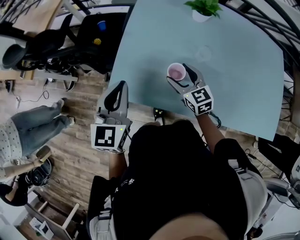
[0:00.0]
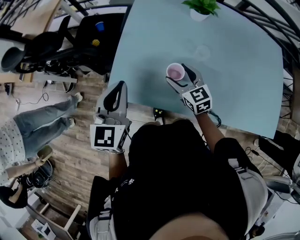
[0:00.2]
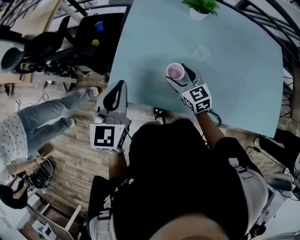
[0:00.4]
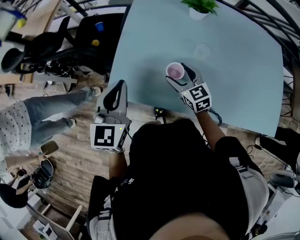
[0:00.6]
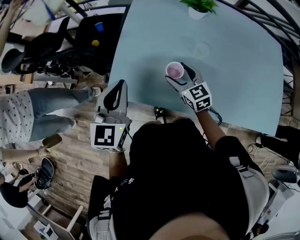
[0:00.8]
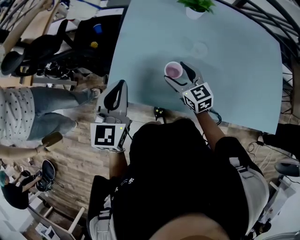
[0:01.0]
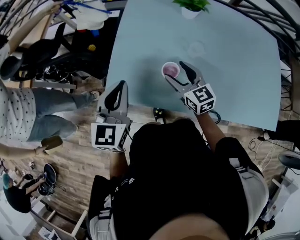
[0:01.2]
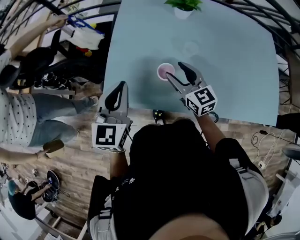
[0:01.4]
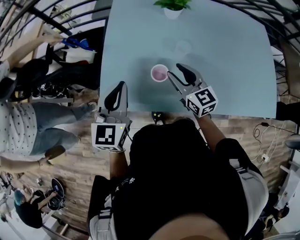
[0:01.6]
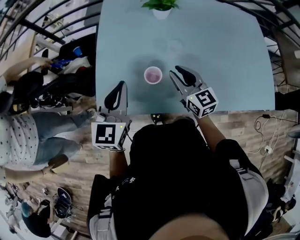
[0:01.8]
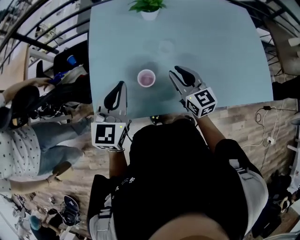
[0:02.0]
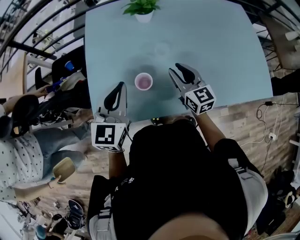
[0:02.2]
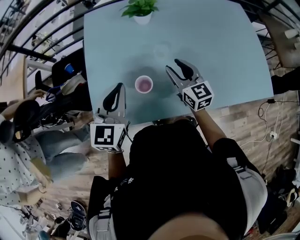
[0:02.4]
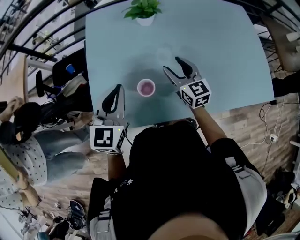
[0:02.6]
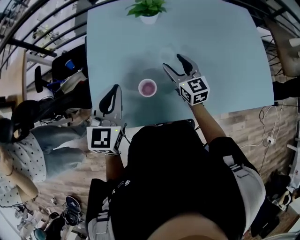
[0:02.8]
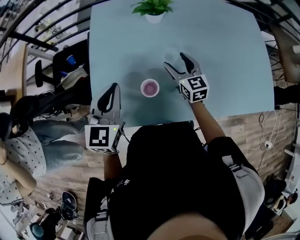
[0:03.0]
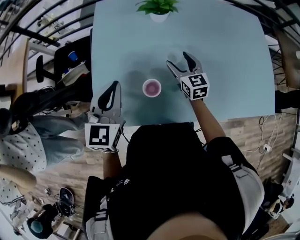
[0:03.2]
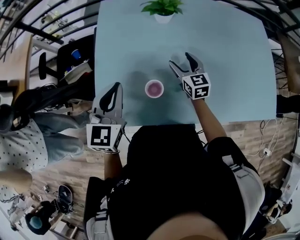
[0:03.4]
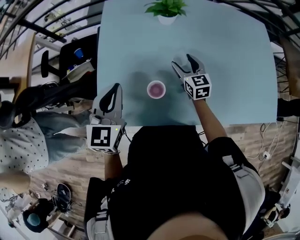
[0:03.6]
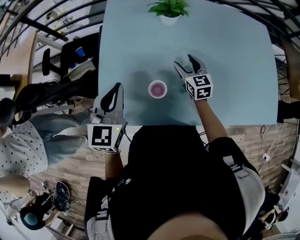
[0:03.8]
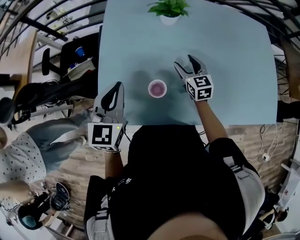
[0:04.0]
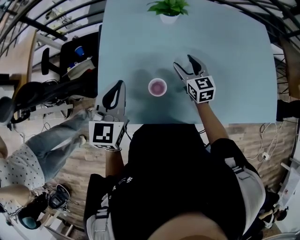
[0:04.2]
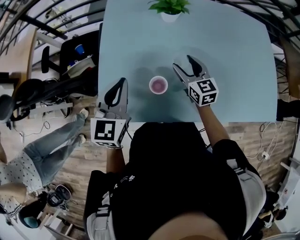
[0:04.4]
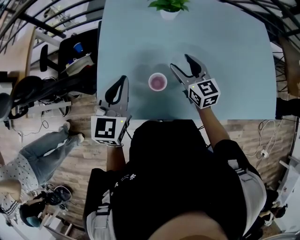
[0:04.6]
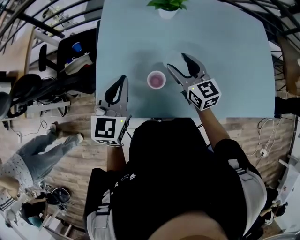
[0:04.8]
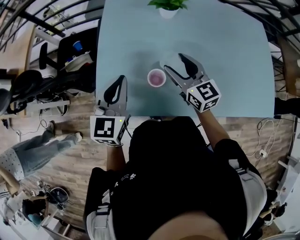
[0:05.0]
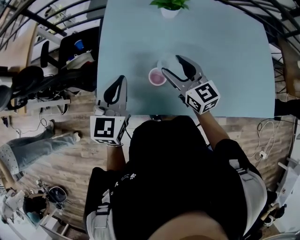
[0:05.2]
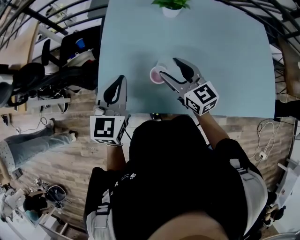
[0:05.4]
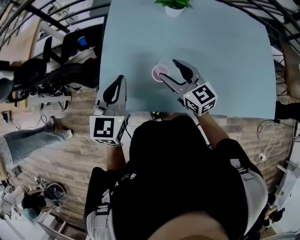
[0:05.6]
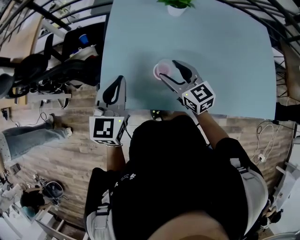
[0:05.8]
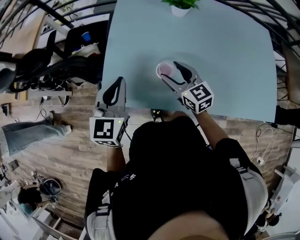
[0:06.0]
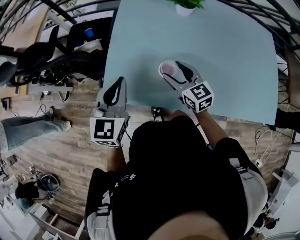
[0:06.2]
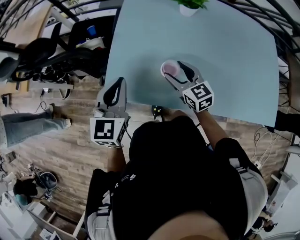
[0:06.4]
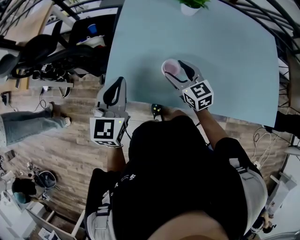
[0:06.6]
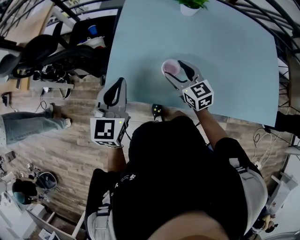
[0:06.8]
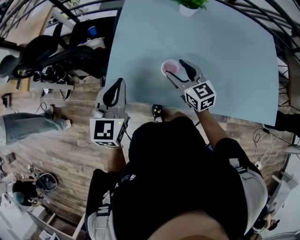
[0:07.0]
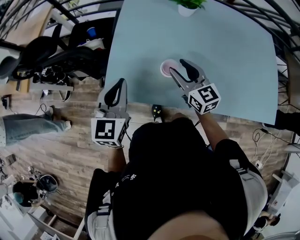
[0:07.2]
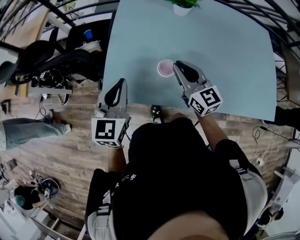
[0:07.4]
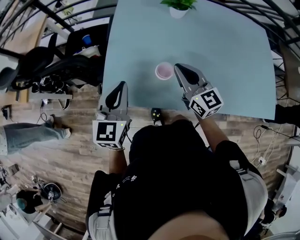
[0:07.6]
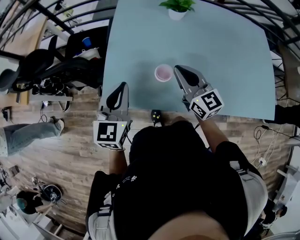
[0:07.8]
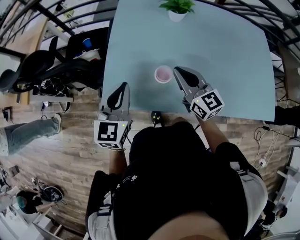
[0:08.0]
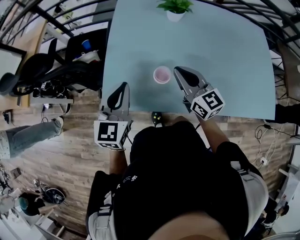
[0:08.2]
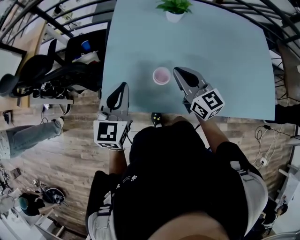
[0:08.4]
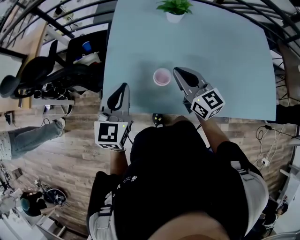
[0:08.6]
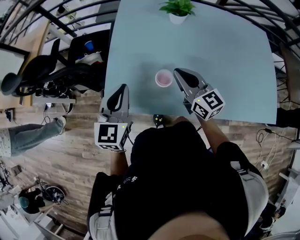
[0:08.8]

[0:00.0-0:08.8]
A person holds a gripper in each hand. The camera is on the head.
0:00.0 to 0:01.4: The grippers make only small movements.
0:01.4 to 0:03.0: The right gripper goes some 15 cm to the right and forward, turns by roughly 20 degrees, and closes, then opens again, while the left gripper goes approximately 10 cm forward and to the right.
0:03.0 to 0:04.4: The grippers move only a little.
0:04.4 to 0:05.8: The right gripper is displaced to the left and backward by roughly 15 cm. Meanwhile the left gripper heads backward, covering some 5 cm.
0:05.8 to 0:07.4: The right gripper closes.
0:07.4 to 0:08.8: The grippers stay close to where they were, moving slightly.

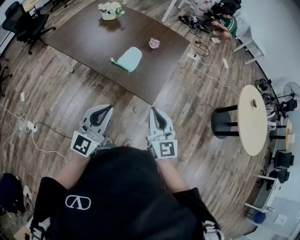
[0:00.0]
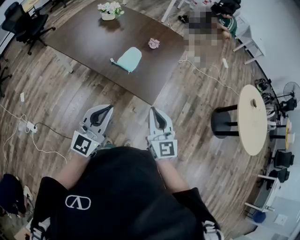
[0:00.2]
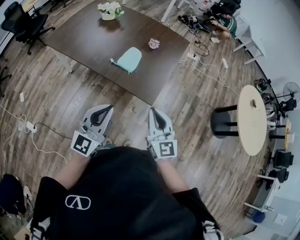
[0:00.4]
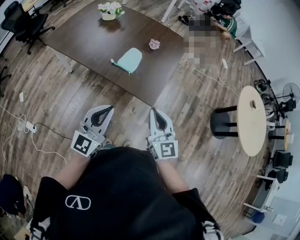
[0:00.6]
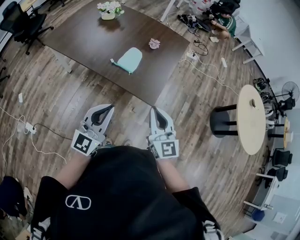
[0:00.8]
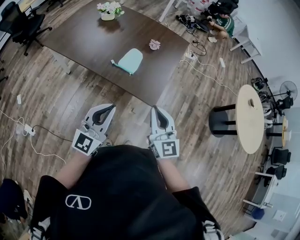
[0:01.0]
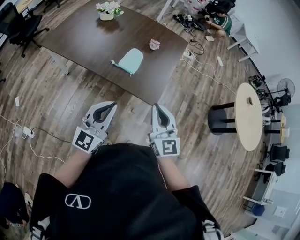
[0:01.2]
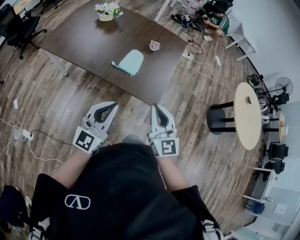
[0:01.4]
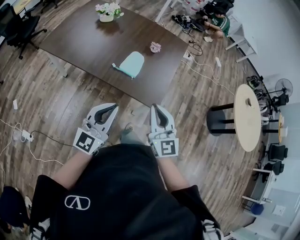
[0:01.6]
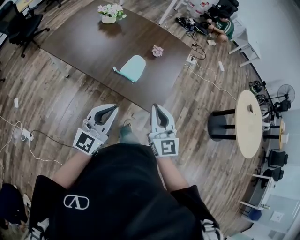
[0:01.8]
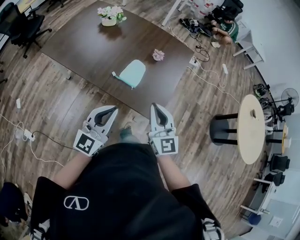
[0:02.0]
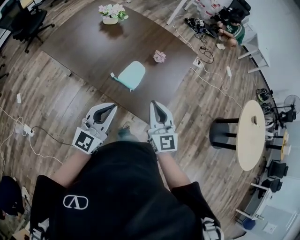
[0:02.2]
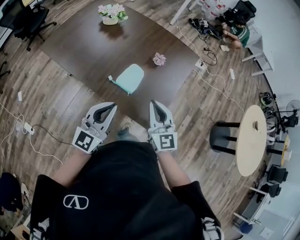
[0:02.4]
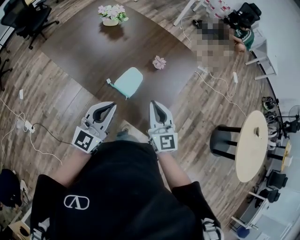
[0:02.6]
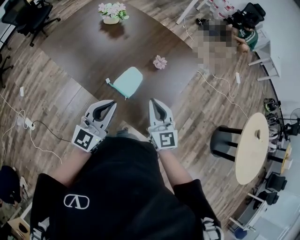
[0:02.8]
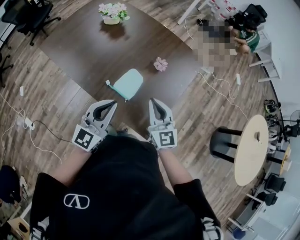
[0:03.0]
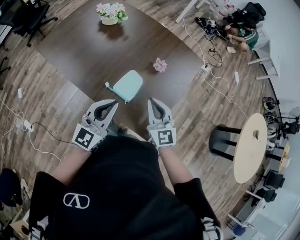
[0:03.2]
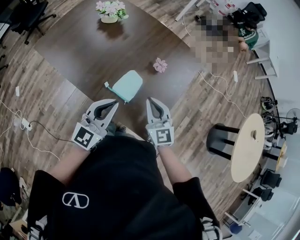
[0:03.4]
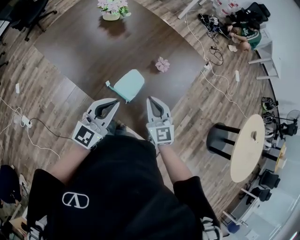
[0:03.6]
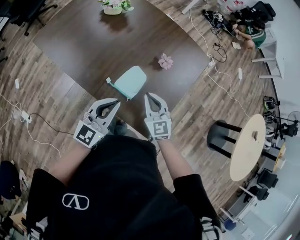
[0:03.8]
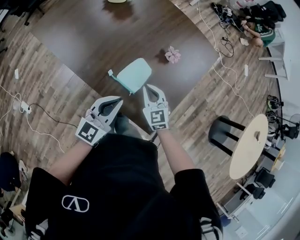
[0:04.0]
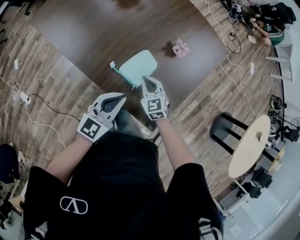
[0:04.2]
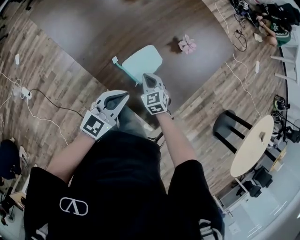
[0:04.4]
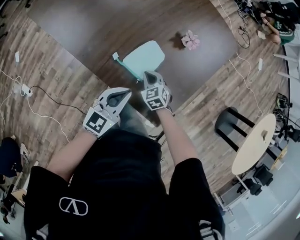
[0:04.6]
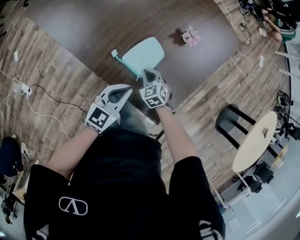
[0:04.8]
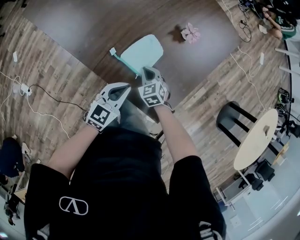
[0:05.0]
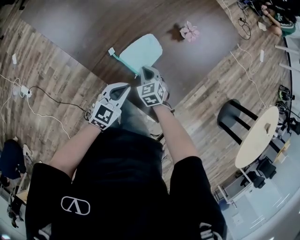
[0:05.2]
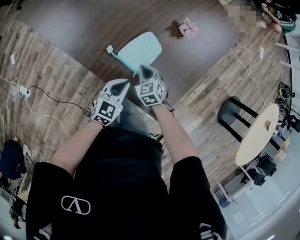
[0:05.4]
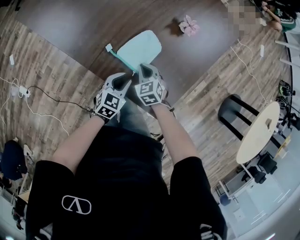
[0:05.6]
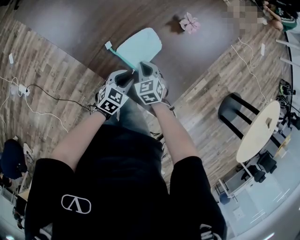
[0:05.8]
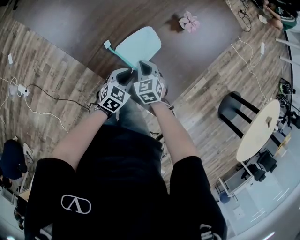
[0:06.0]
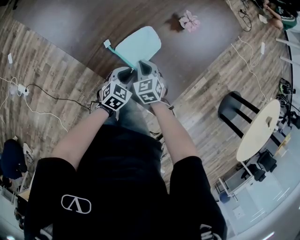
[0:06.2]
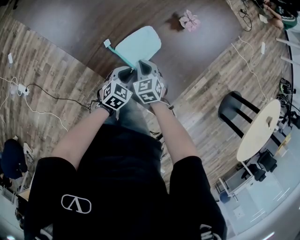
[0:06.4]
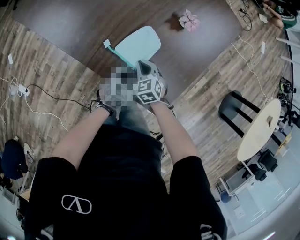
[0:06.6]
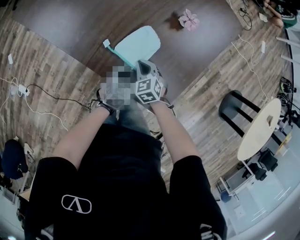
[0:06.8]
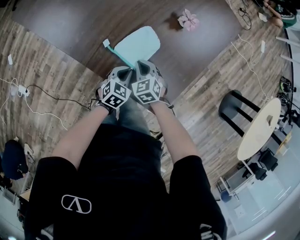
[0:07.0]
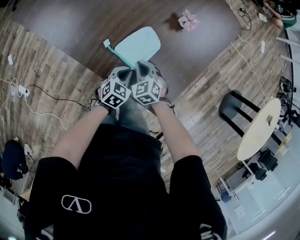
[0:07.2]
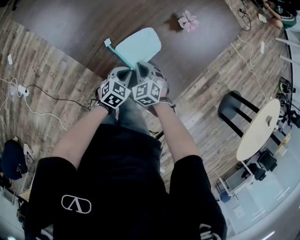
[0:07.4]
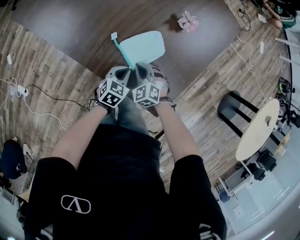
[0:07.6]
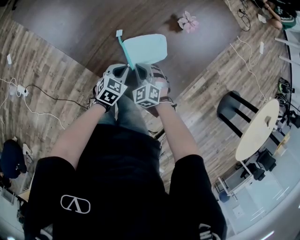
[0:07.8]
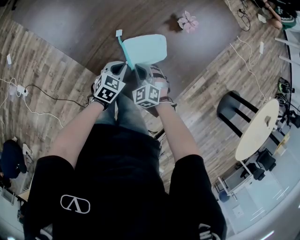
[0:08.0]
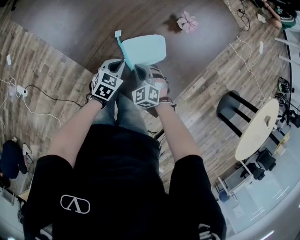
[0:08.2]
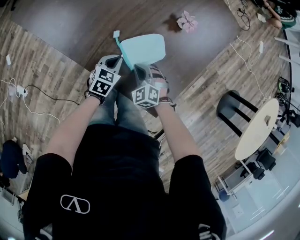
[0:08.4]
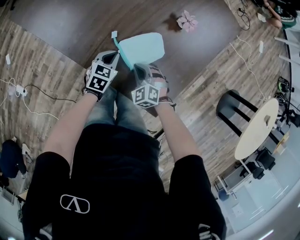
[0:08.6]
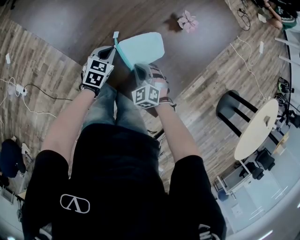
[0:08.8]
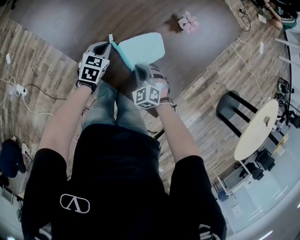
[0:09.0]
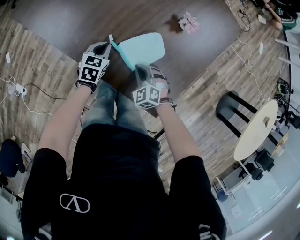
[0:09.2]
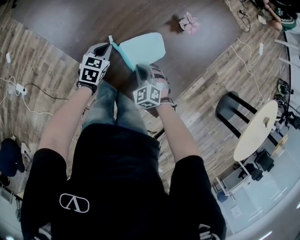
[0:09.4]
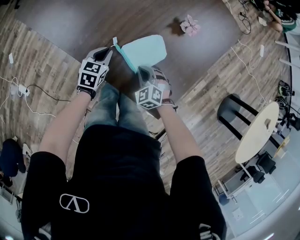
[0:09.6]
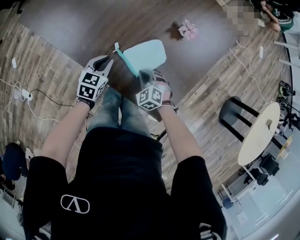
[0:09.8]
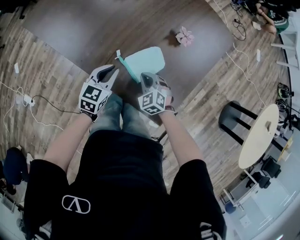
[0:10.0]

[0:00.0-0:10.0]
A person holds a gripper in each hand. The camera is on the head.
0:00.0 to 0:01.4: Both grippers travel together to the left, some 5 cm.
0:01.4 to 0:02.8: Both grippers move forward, some 30 cm.
0:02.8 to 0:04.2: The right gripper heads downward and forward, covering about 30 cm, and angles its fingers downward, by some 30 degrees. The left gripper heads downward and forward, covering some 20 cm.
0:04.2 to 0:05.8: The left gripper is displaced downward by about 25 cm, points its fingers roughly 30 degrees further downward, and opens its fingers, while the right gripper heads downward, covering some 10 cm.
0:05.8 to 0:07.2: The left gripper closes its fingers.
0:07.2 to 0:08.6: The left gripper travels forward and to the left by some 10 cm.
0:08.6 to 0:10.0: The right gripper heads upward, covering about 5 cm; the left gripper is displaced upward by roughly 15 cm.

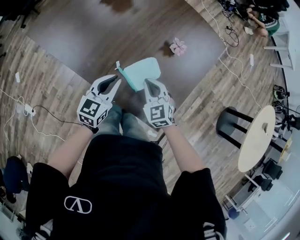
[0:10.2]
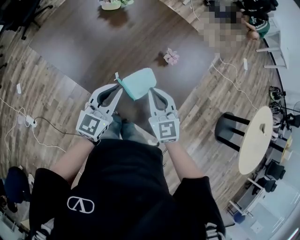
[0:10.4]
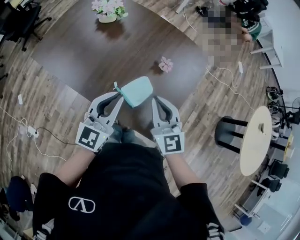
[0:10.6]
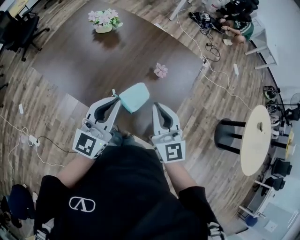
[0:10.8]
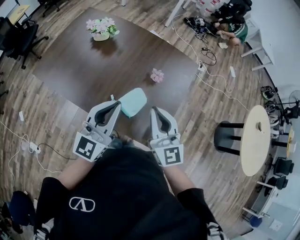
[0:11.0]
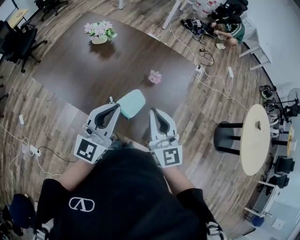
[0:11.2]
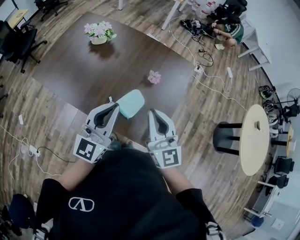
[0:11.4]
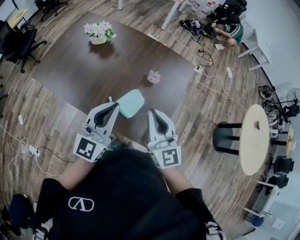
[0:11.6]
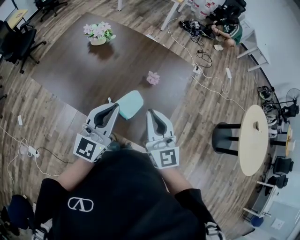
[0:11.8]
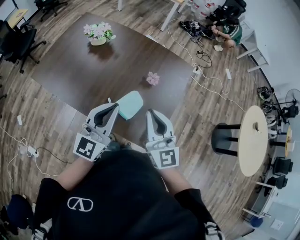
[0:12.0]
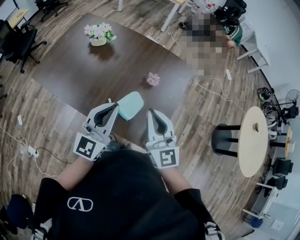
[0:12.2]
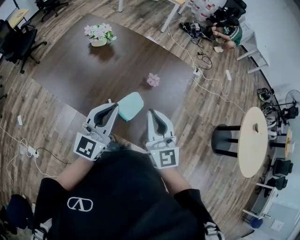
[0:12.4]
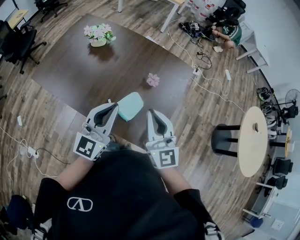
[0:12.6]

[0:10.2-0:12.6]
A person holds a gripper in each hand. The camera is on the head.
0:10.2 to 0:11.4: Both grippers move upward, approximately 30 cm. The right gripper points its fingers about 40 degrees further upward. The left gripper changes its angle by approximately 30 degrees.
0:11.4 to 0:12.6: Neither gripper changes place.

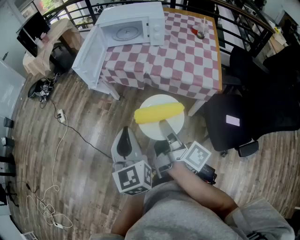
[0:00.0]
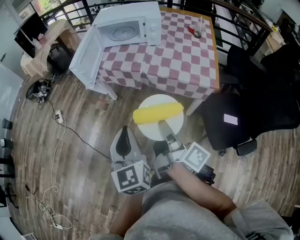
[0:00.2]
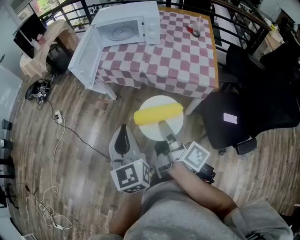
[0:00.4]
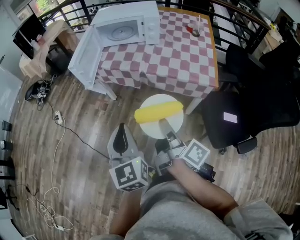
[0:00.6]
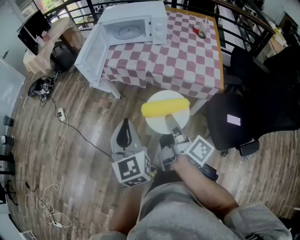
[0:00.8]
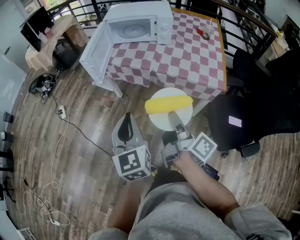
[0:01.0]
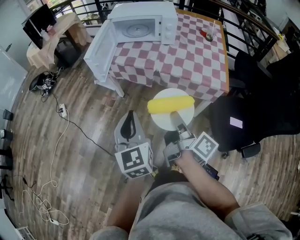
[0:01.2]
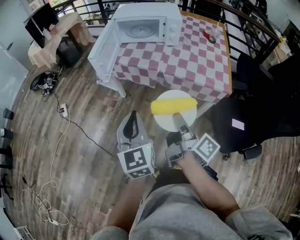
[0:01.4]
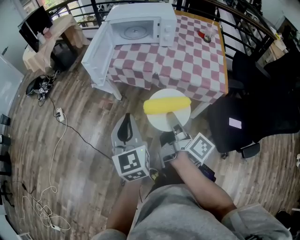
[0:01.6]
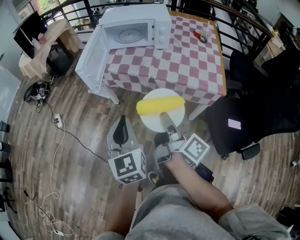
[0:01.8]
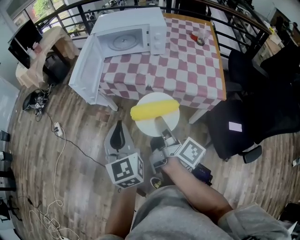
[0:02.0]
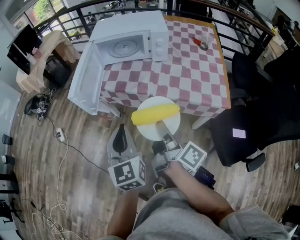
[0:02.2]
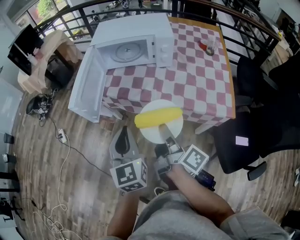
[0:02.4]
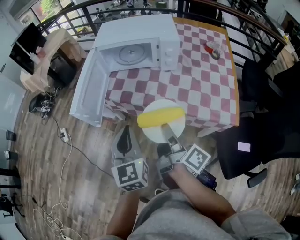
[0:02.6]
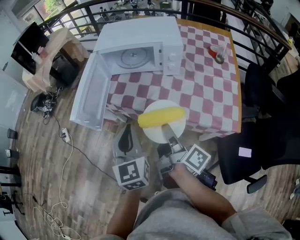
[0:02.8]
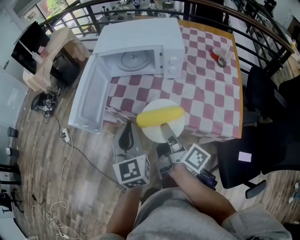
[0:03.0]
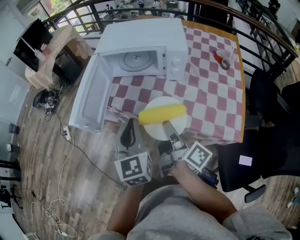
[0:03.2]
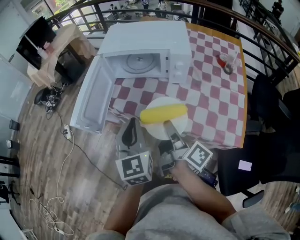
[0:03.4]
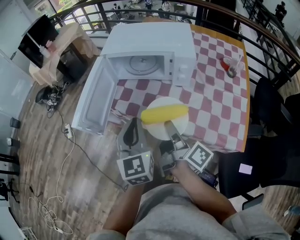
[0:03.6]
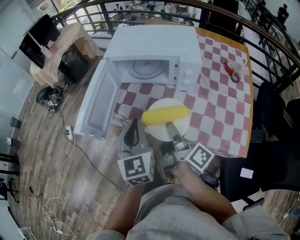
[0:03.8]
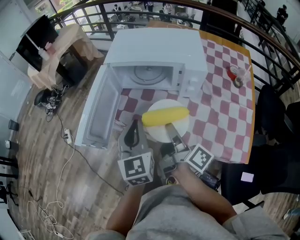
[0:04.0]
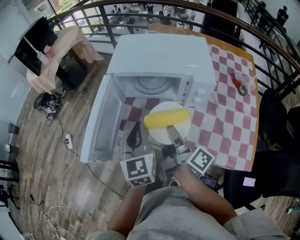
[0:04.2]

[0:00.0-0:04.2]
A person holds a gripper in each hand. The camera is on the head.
0:00.0 to 0:01.4: The left gripper changes place by approximately 5 cm.
0:01.4 to 0:02.8: Both grippers move forward, approximately 25 cm.
0:02.8 to 0:04.2: Both grippers travel together forward, some 20 cm.
